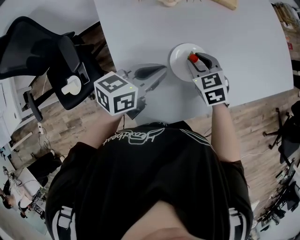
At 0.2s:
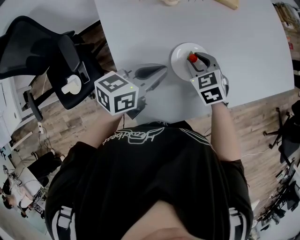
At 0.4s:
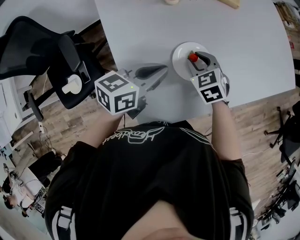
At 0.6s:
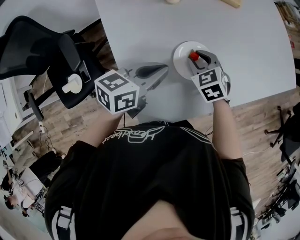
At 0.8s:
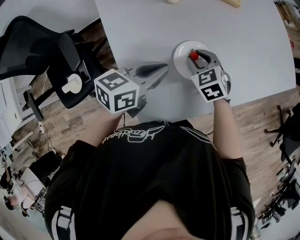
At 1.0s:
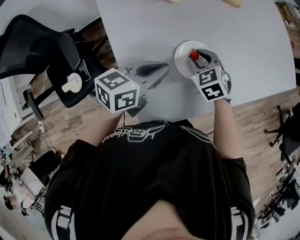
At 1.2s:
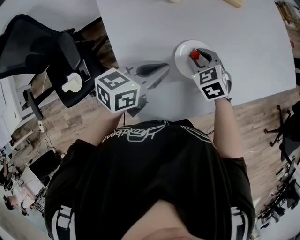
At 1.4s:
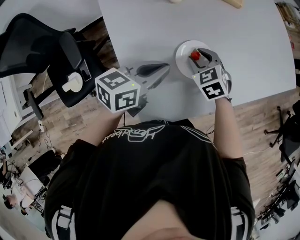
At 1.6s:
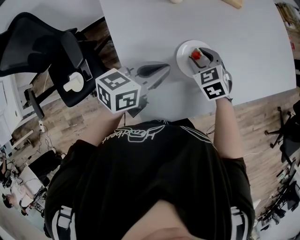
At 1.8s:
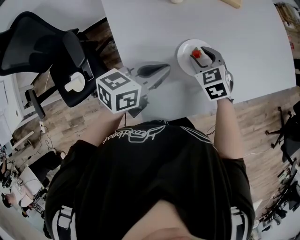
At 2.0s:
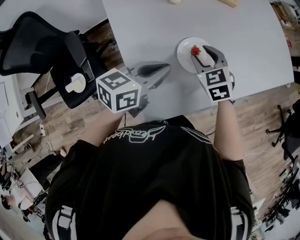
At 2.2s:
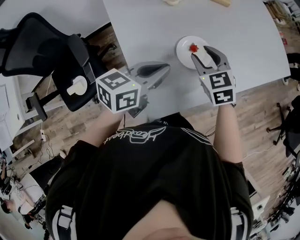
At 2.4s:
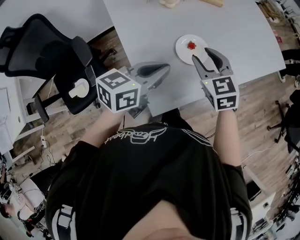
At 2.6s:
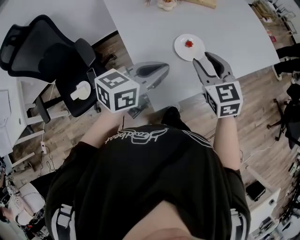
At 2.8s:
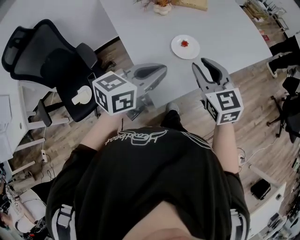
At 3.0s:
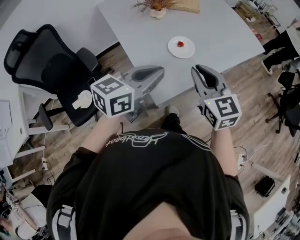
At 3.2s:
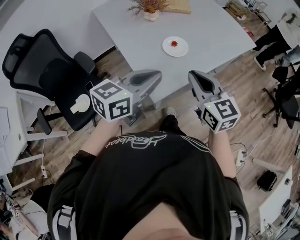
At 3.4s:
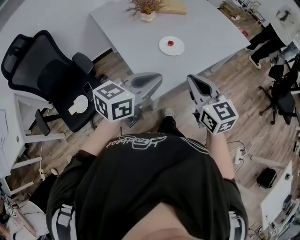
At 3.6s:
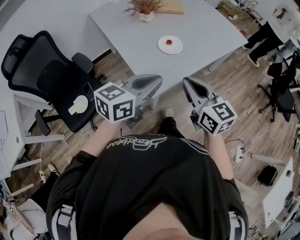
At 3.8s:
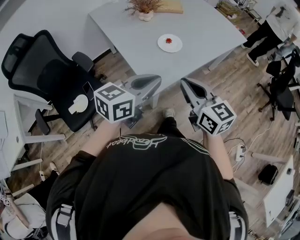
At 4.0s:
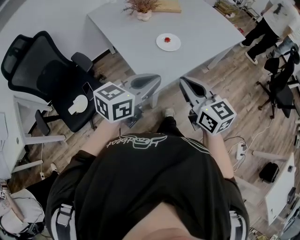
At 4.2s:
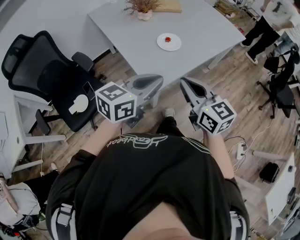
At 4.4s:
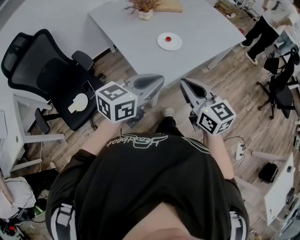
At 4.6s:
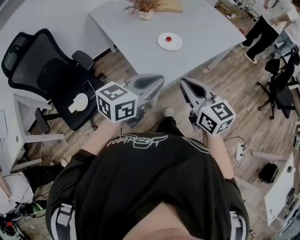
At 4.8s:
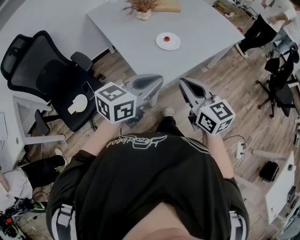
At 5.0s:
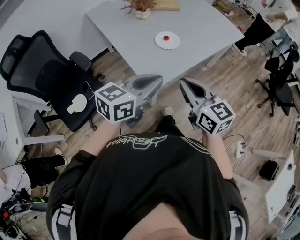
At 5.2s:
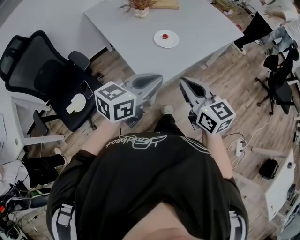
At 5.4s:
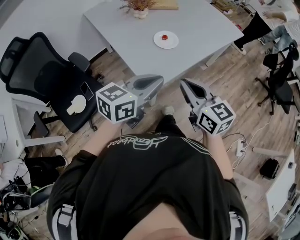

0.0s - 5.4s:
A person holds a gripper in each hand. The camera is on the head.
0.0s - 1.4s: The grippers make only small movements.
1.4s - 2.8s: The right gripper goes approximately 30 cm upward and backward, and tips its fingers upward by about 30 degrees. Meanwhile the left gripper goes about 20 cm backward and upward.
2.8s - 4.0s: Both grippers move backward, some 15 cm. The right gripper swivels some 20 degrees, and closes its fingers.
4.0s - 5.4s: The grippers move only a little.

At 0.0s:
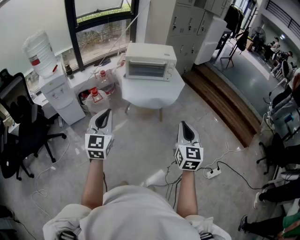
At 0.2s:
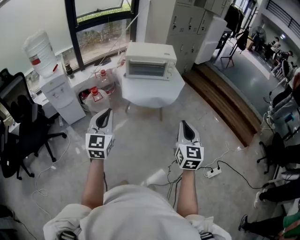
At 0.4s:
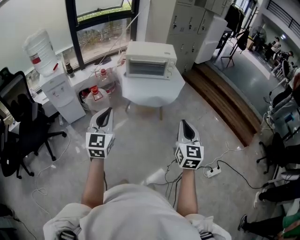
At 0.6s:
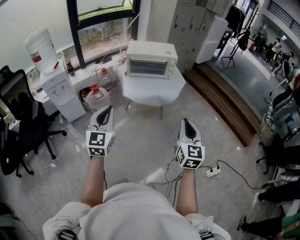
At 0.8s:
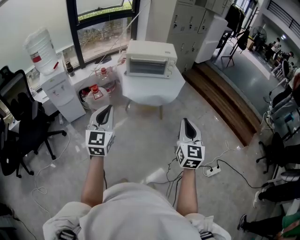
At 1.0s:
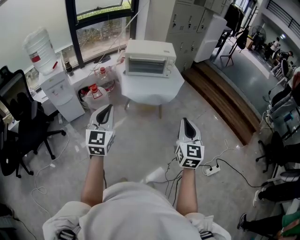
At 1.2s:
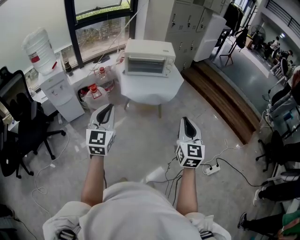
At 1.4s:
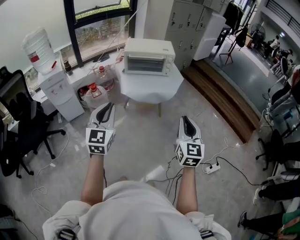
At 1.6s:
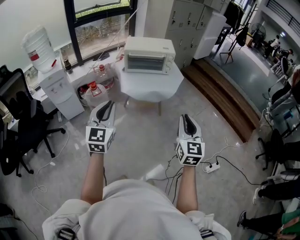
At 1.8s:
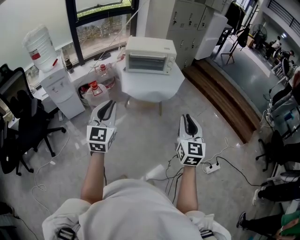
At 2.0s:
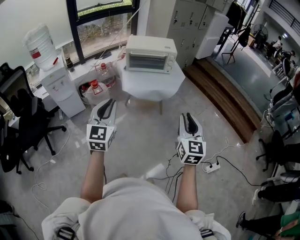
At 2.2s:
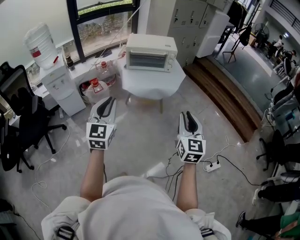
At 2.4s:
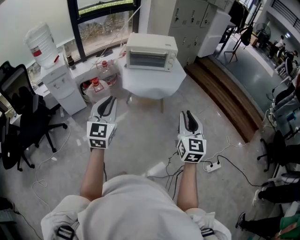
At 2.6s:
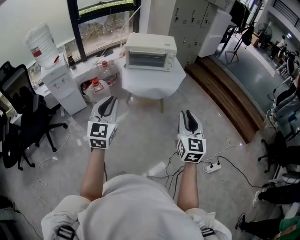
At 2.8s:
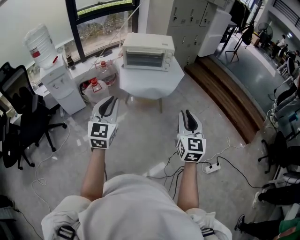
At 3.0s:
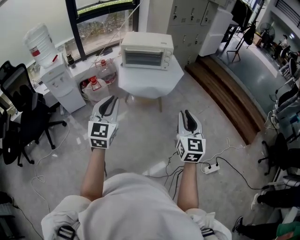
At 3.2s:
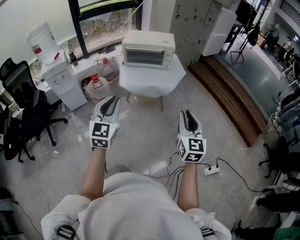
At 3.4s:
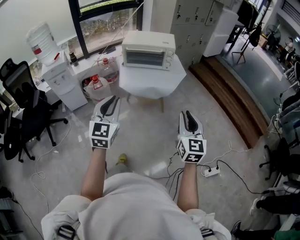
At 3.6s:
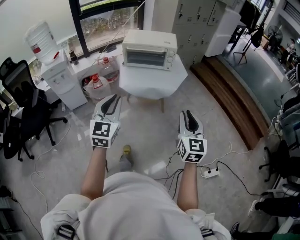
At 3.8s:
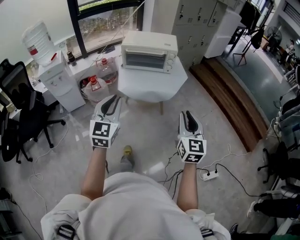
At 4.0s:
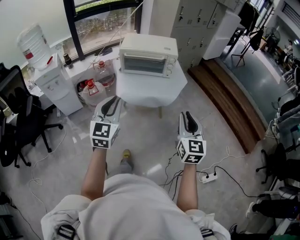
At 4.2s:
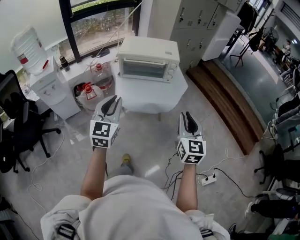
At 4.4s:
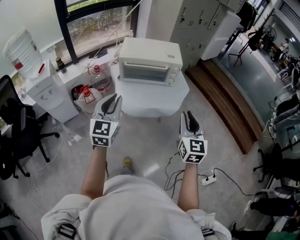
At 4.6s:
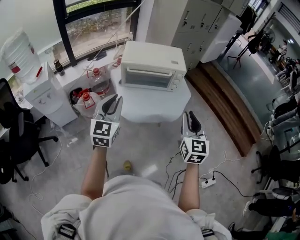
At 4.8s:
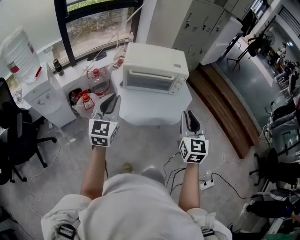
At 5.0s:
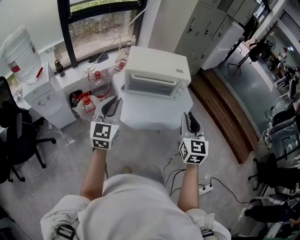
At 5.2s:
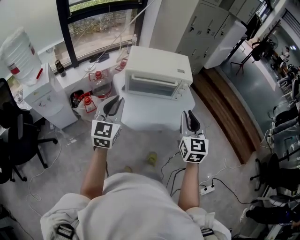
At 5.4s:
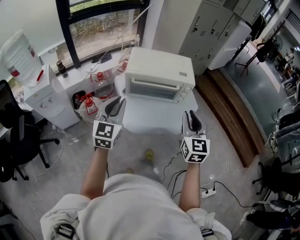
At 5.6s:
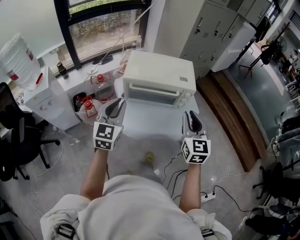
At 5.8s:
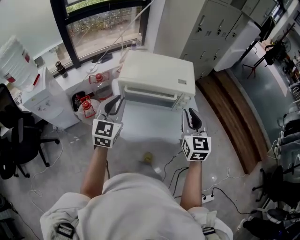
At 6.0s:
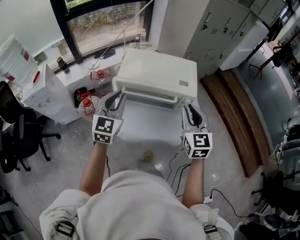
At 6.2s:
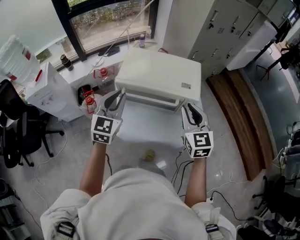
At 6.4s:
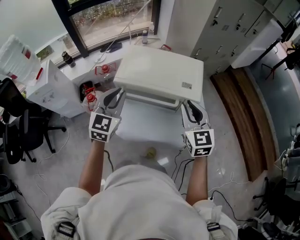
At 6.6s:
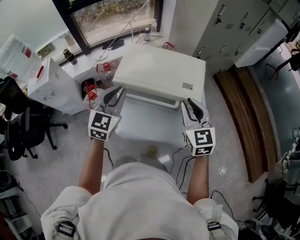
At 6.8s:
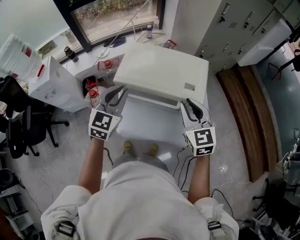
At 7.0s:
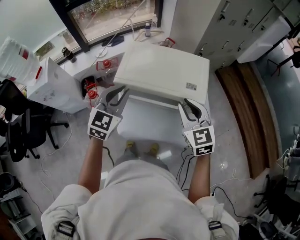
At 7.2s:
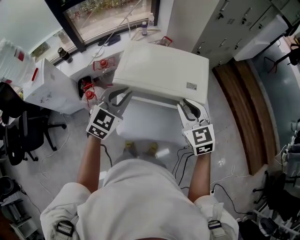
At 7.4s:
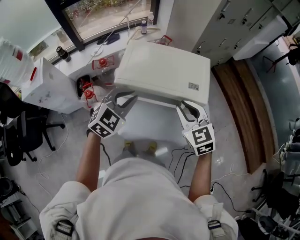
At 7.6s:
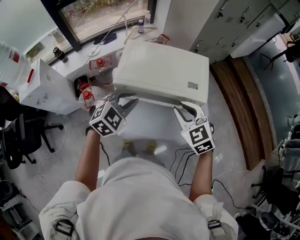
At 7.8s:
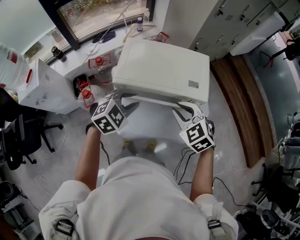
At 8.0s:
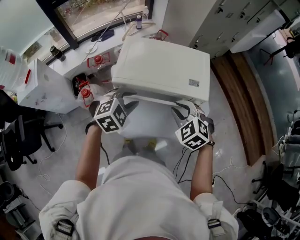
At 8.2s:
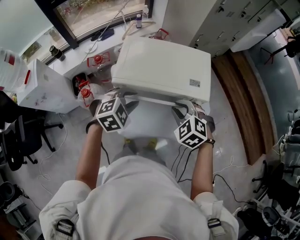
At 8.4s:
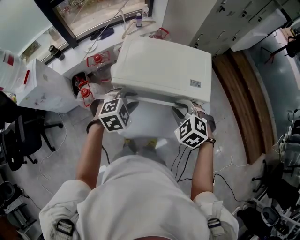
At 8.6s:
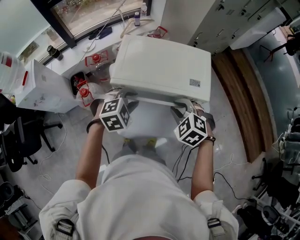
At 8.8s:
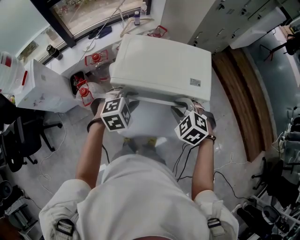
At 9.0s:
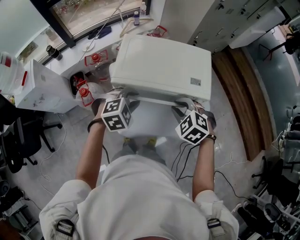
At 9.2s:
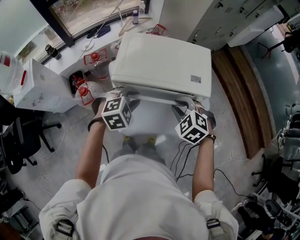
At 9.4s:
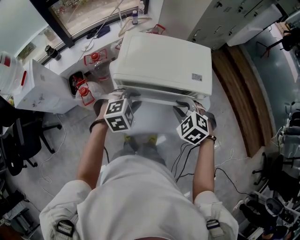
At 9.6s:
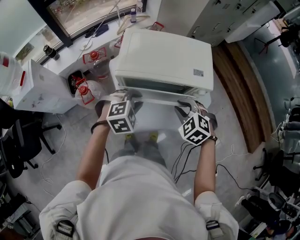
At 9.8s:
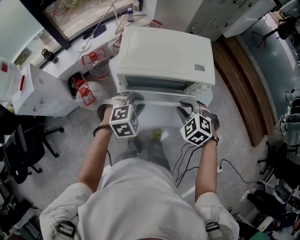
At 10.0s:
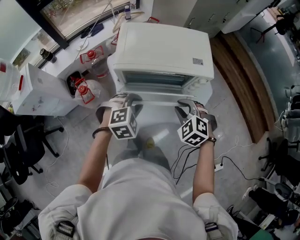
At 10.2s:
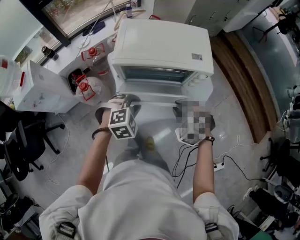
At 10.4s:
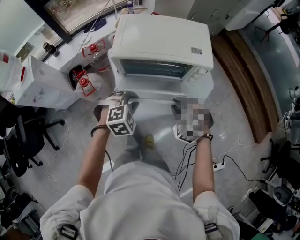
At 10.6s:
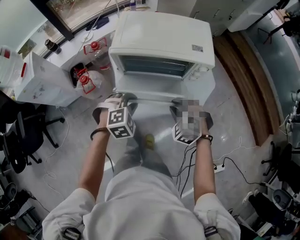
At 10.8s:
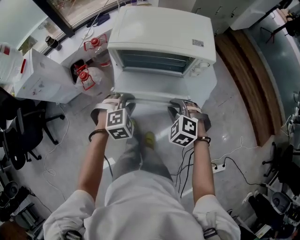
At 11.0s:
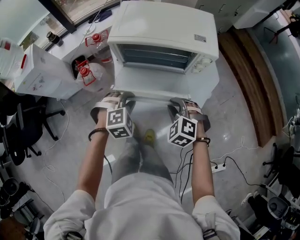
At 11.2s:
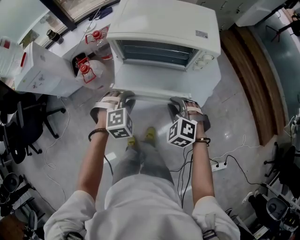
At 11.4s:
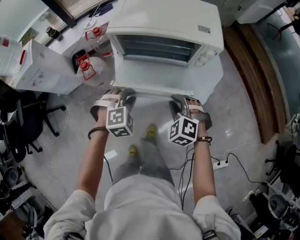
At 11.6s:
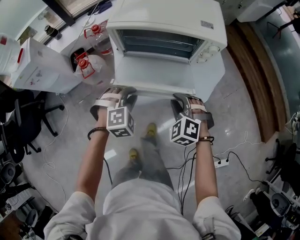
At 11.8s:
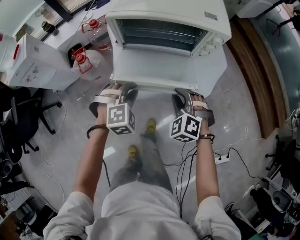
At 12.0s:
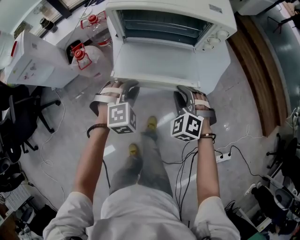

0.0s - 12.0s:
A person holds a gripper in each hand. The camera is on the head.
0.0s - 1.6s: There are only small adjustments of the grippers.
1.6s - 3.0s: Both grippers move to the right, about 10 cm.
3.0s - 4.4s: Both grippers move forward, some 25 cm.
4.4s - 6.0s: The two grippers go roughly 30 cm forward.
6.0s - 7.6s: The left gripper moves downward and forward, about 10 cm, and changes its angle by some 40 degrees, while the right gripper goes roughly 10 cm forward, downward and to the left, and rotates about 30 degrees.
7.6s - 9.0s: The two grippers go approximately 5 cm downward. The left gripper swivels some 20 degrees, while the right gripper turns by some 30 degrees.
9.0s - 10.4s: The two grippers go about 15 cm backward and downward.
10.4s - 12.0s: Both grippers move downward and backward, approximately 15 cm.

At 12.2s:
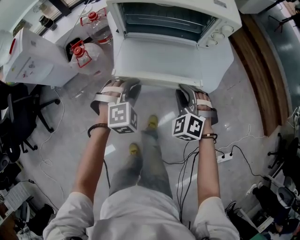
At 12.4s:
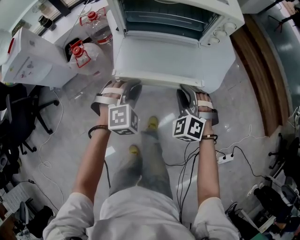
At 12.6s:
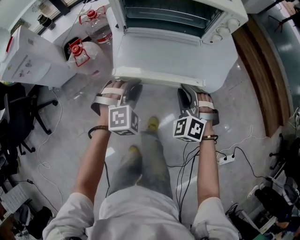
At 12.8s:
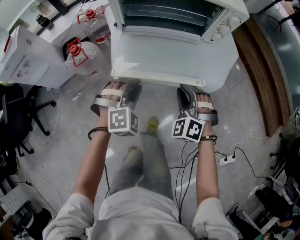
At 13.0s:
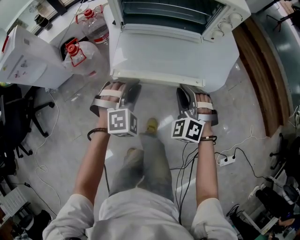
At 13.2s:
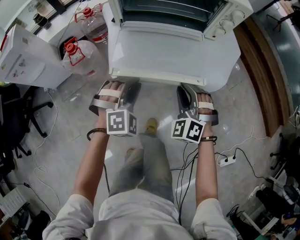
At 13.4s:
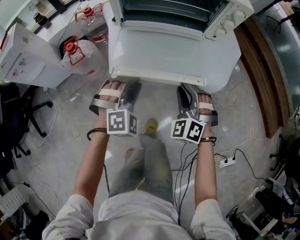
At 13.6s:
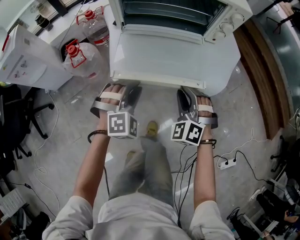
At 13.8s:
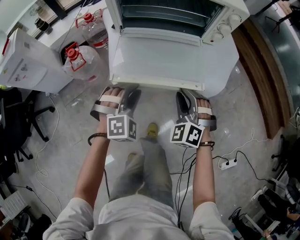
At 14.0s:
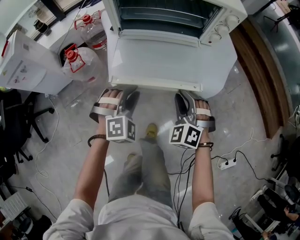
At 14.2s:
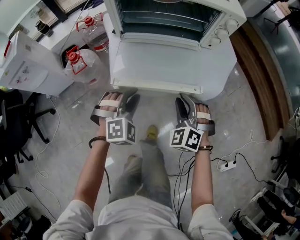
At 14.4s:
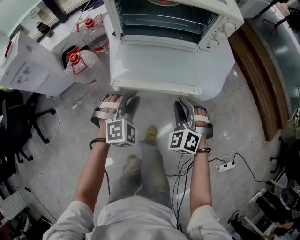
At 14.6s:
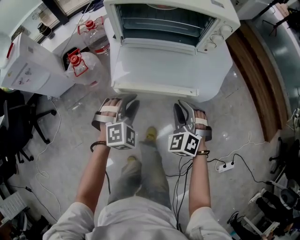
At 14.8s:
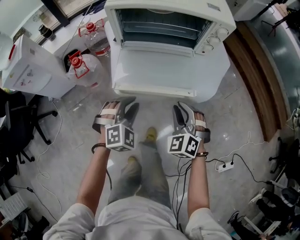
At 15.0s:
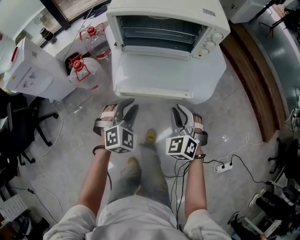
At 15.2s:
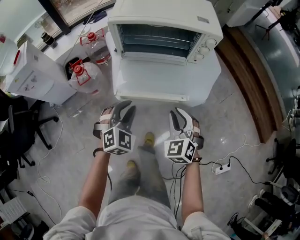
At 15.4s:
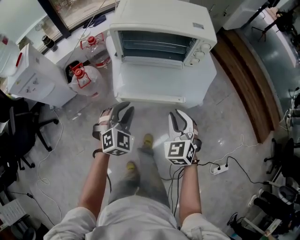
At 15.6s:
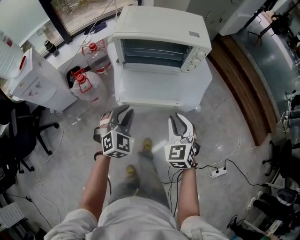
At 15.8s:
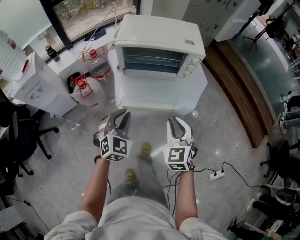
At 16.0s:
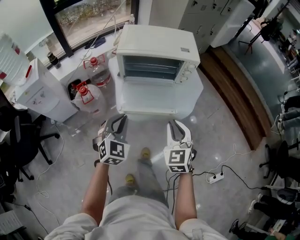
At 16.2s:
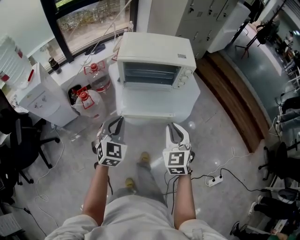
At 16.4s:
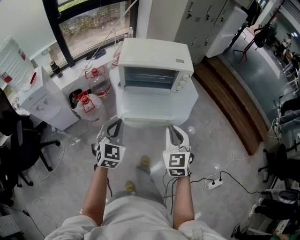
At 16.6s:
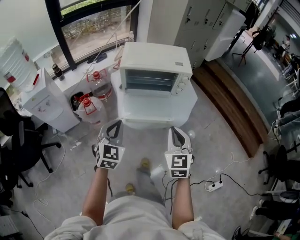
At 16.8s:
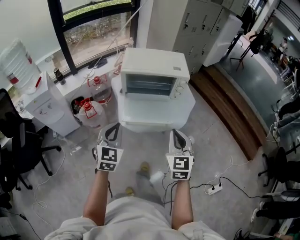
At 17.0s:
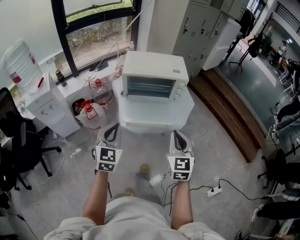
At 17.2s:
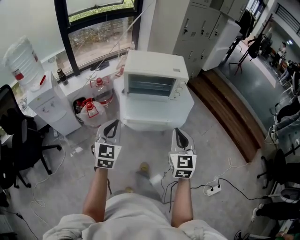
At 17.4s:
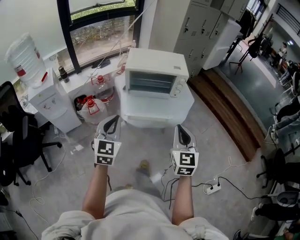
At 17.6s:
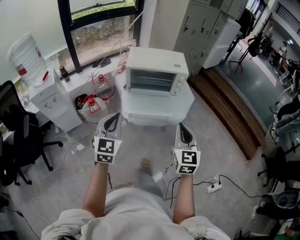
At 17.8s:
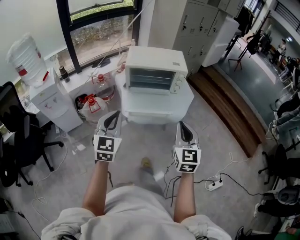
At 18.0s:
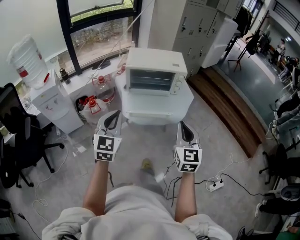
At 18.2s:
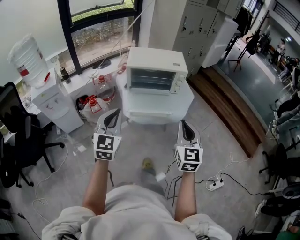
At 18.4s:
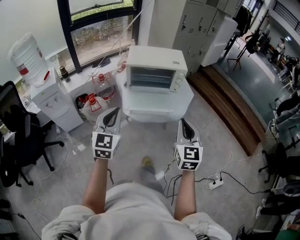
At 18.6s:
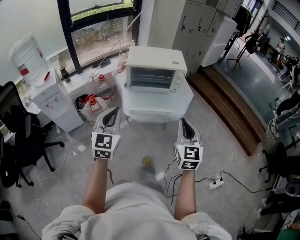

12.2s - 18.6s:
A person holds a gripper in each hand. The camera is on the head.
12.2s - 13.8s: Both grippers travel together downward, roughly 5 cm.
13.8s - 15.4s: The grippers both shift upward by about 15 cm. The left gripper turns by roughly 20 degrees, while the right gripper rotates about 30 degrees.
15.4s - 17.0s: The grippers both shift upward and backward by about 25 cm. The right gripper rotates about 30 degrees, while the left gripper swivels roughly 30 degrees.
17.0s - 18.6s: The left gripper travels backward and upward by about 10 cm. Meanwhile the right gripper moves backward, about 10 cm.
